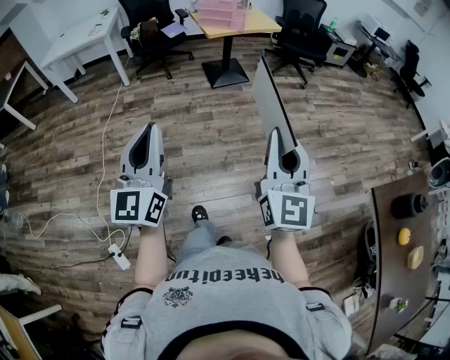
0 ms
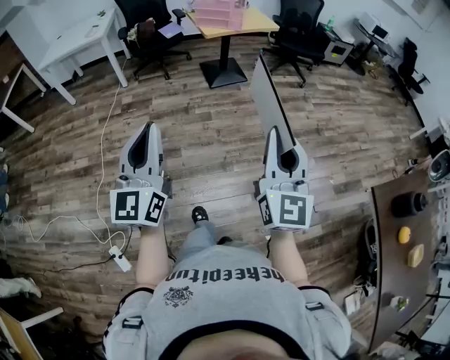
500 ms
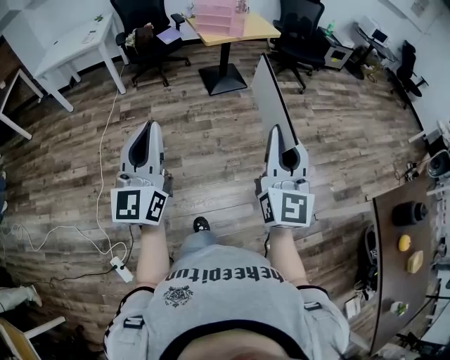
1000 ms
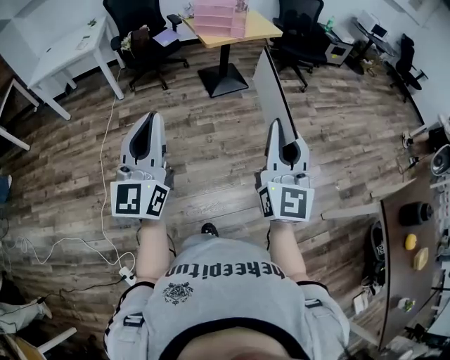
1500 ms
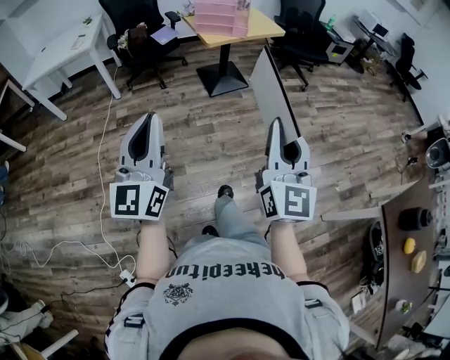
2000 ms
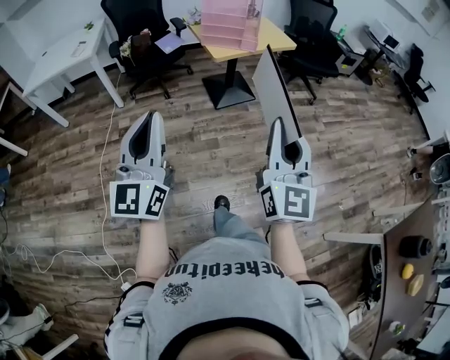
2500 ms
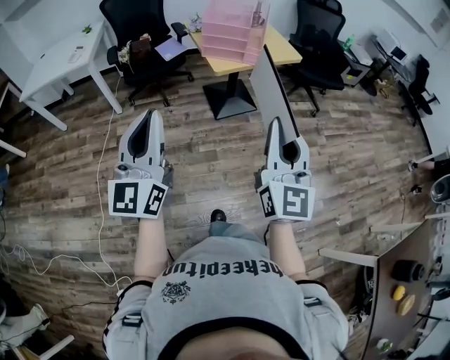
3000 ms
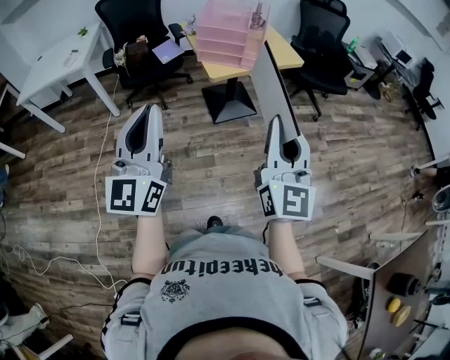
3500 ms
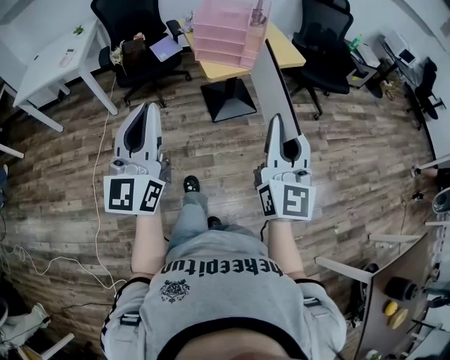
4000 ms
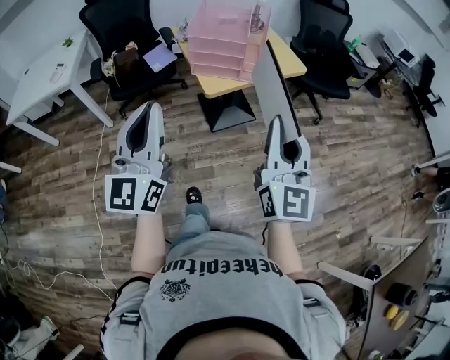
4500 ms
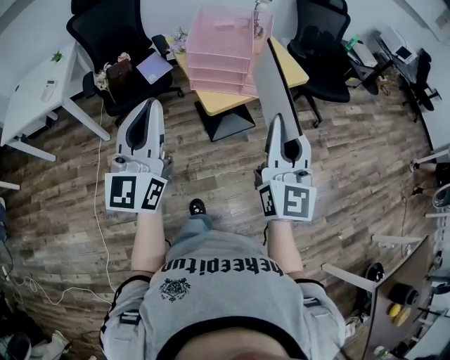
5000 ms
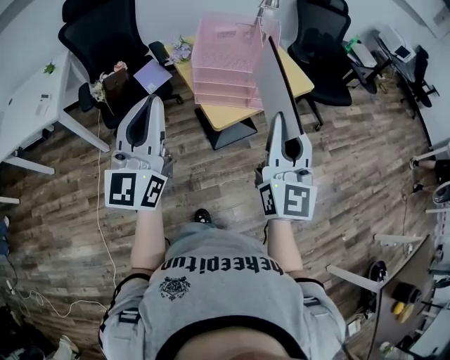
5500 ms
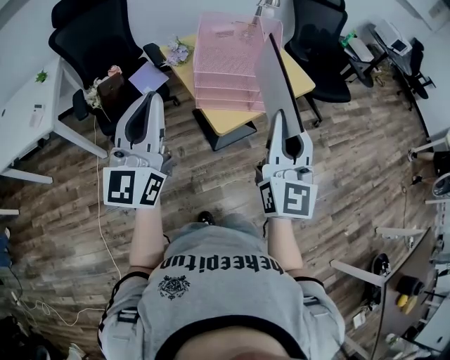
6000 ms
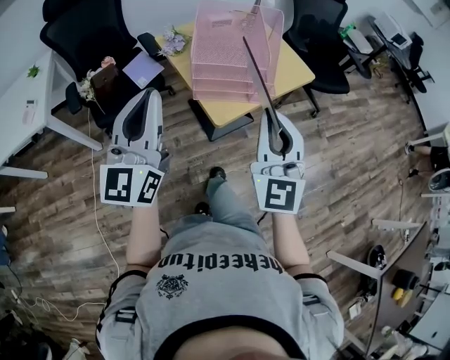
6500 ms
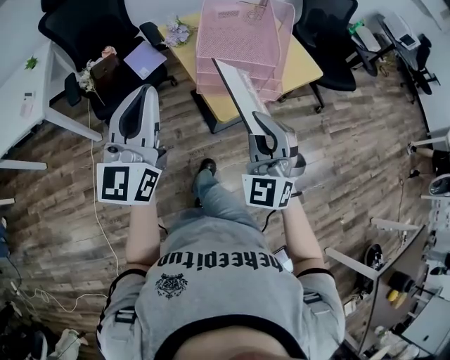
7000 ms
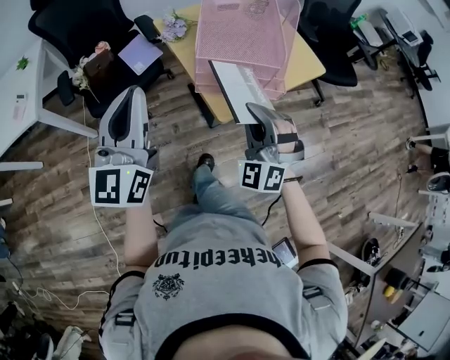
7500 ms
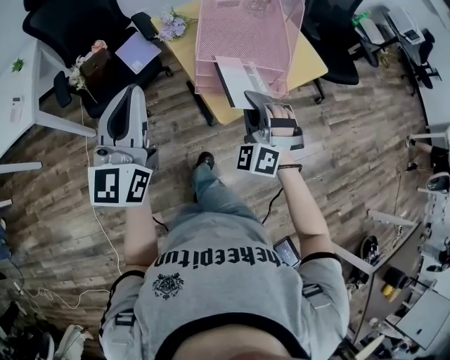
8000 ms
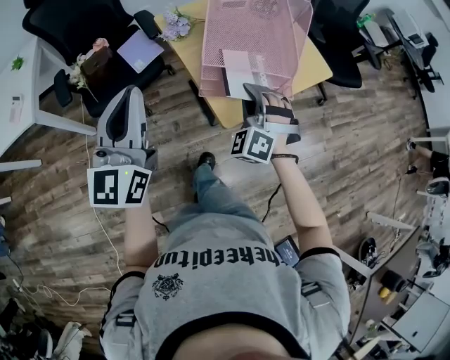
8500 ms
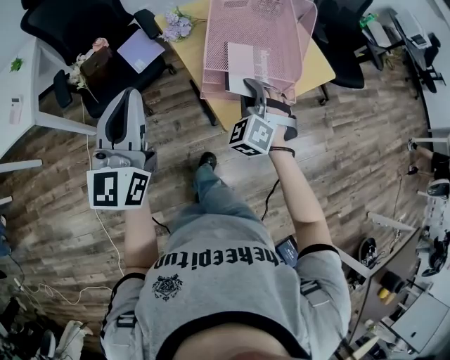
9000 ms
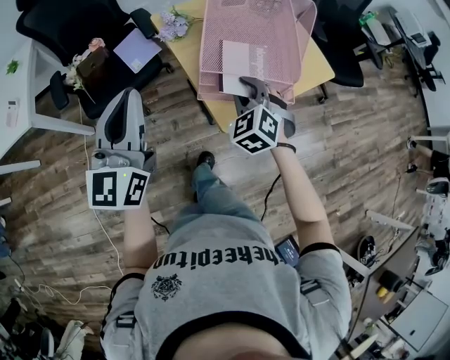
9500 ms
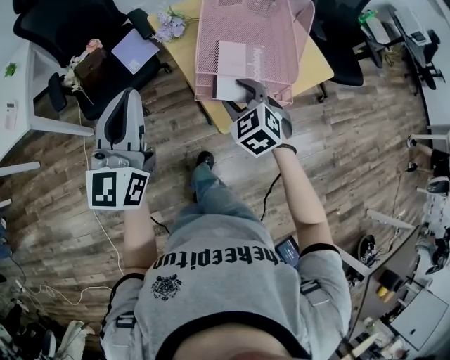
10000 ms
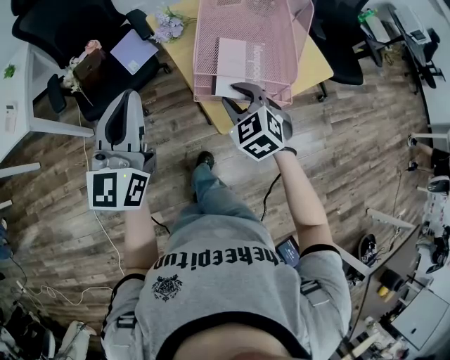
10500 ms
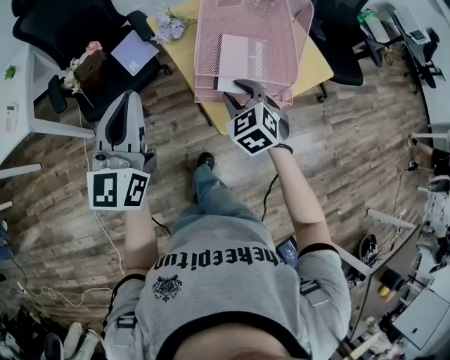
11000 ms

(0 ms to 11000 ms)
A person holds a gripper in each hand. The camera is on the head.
0 ms - 2000 ms: The two grippers go approximately 25 cm forward and to the left.
2000 ms - 3500 ms: Both grippers move forward, approximately 35 cm.
3500 ms - 5500 ms: The two grippers go about 35 cm forward.
5500 ms - 7500 ms: The right gripper goes about 25 cm downward, forward and to the left, and rolls counterclockwise, seen from behind, by roughly 60 degrees; the left gripper travels forward, to the left and downward by approximately 15 cm.
7500 ms - 9000 ms: The left gripper goes roughly 5 cm forward. Meanwhile the right gripper shifts roughly 15 cm forward and downward.
9000 ms - 11000 ms: The right gripper turns by about 30 degrees, and opens.

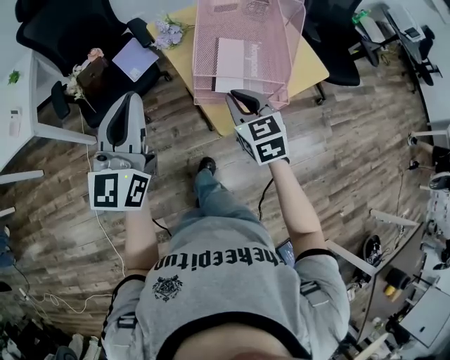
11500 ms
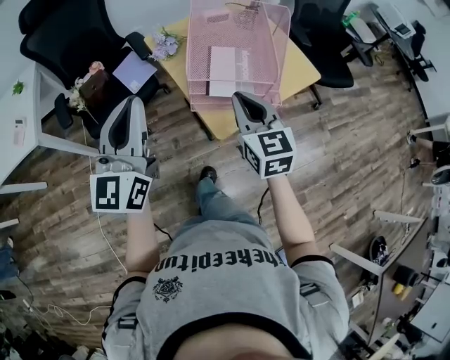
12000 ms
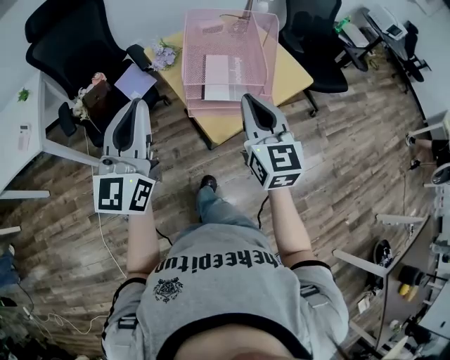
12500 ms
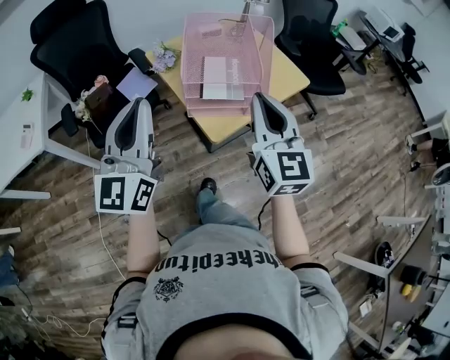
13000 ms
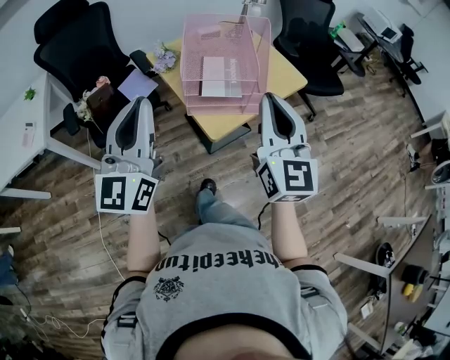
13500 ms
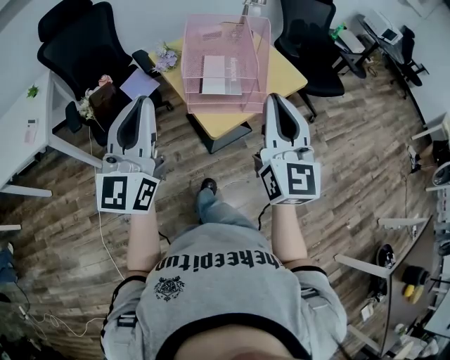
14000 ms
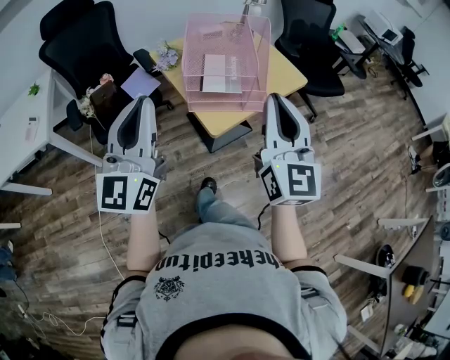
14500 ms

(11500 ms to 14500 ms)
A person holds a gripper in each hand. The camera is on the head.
11500 ms - 13000 ms: The left gripper travels backward and upward by about 10 cm, while the right gripper goes roughly 20 cm upward, backward and to the right, and angles its fingers upward, by some 30 degrees.
13000 ms - 14500 ms: The grippers both shift backward by approximately 5 cm.

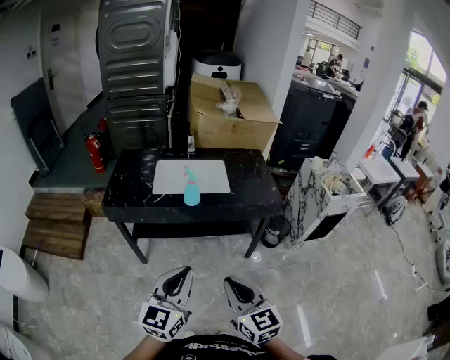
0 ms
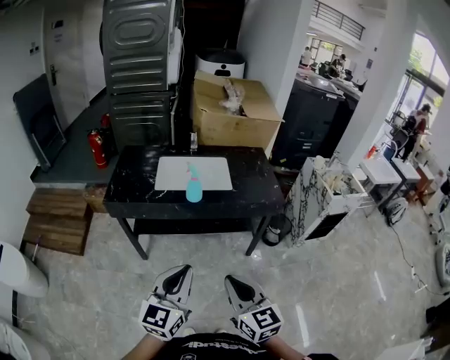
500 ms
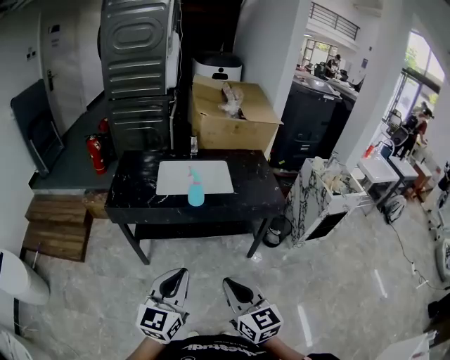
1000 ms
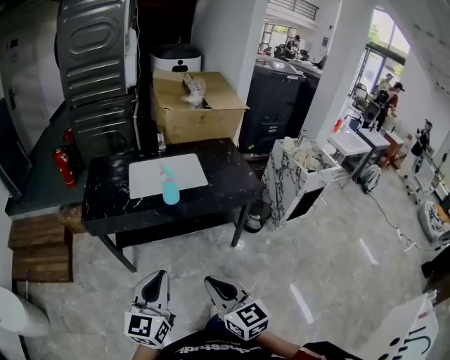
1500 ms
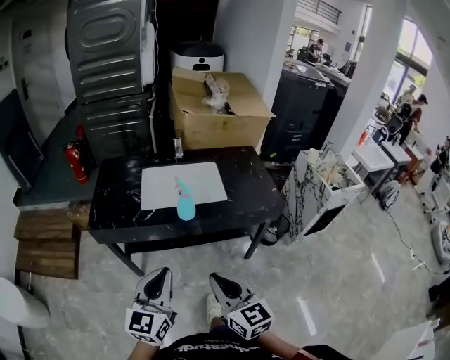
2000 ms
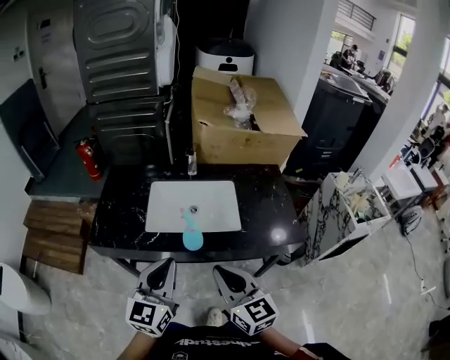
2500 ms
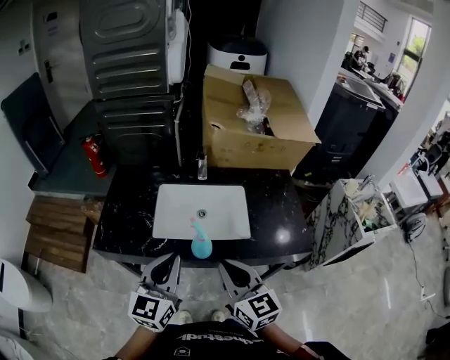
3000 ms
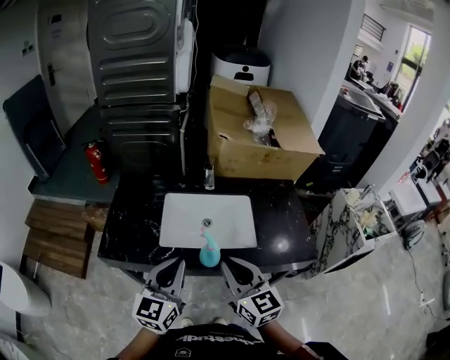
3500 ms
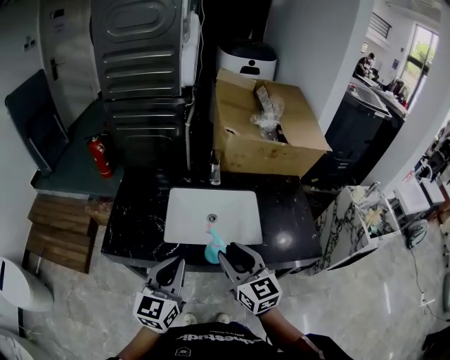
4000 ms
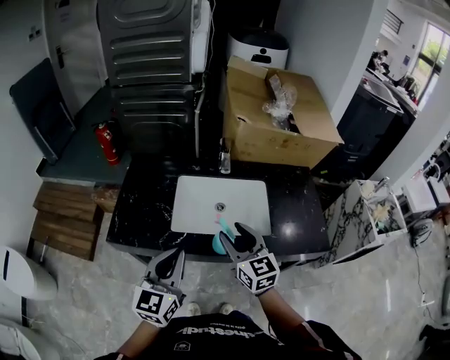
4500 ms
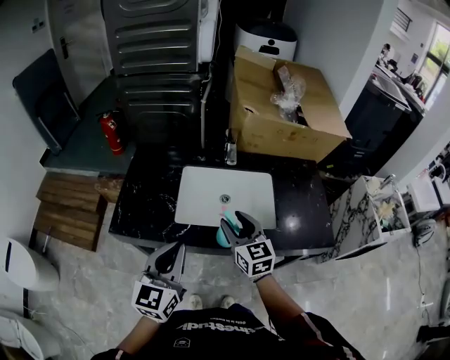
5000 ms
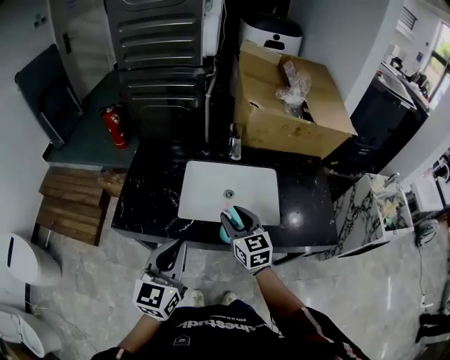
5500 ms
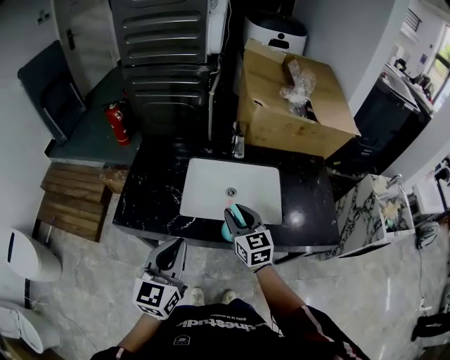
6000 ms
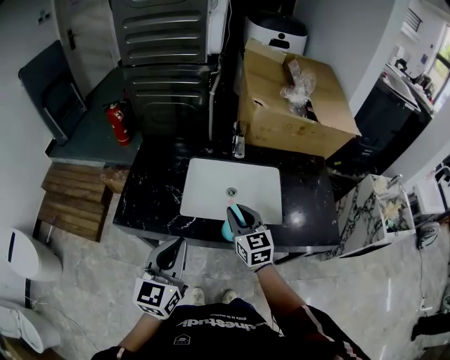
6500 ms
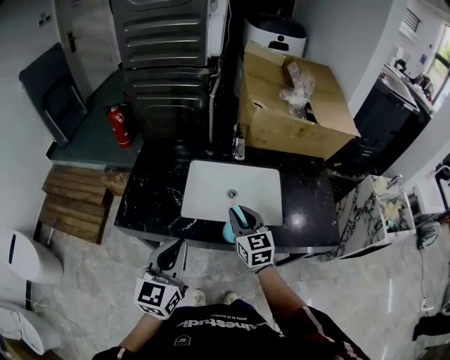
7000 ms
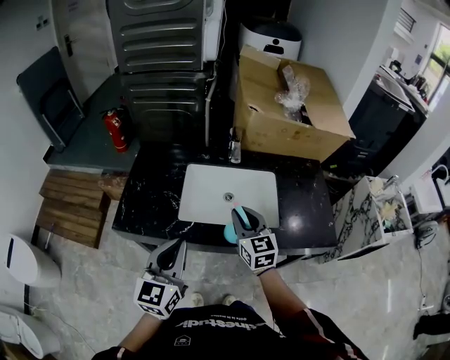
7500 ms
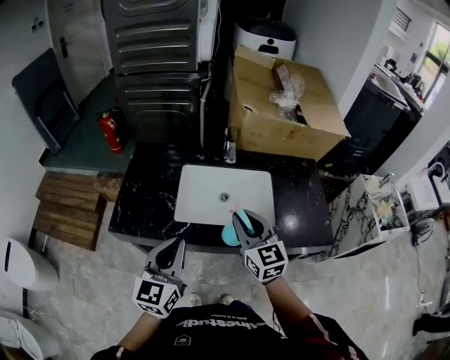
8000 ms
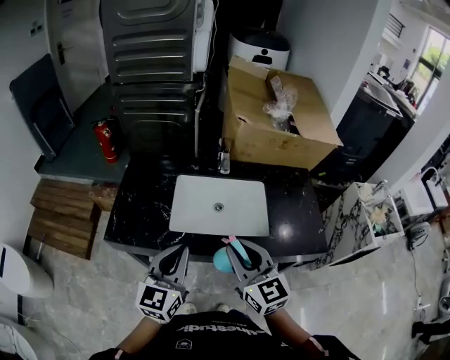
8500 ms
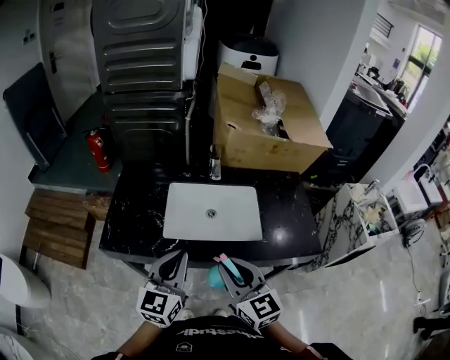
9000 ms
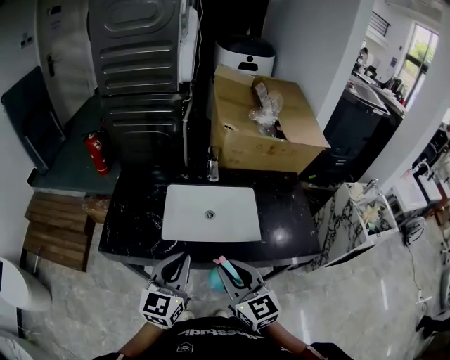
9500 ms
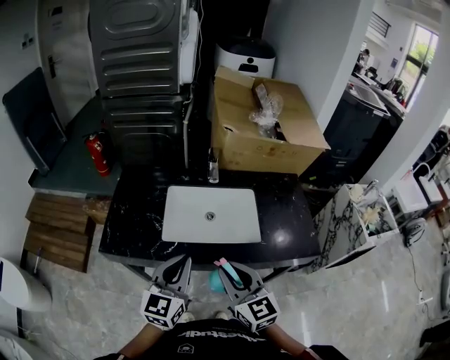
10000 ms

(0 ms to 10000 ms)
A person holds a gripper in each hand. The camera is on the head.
0 ms - 2000 ms: Both grippers move forward and to the left, approximately 15 cm.
2000 ms - 4000 ms: Both grippers move forward, roughly 30 cm. The right gripper opens its fingers.
4000 ms - 6000 ms: The right gripper goes about 15 cm forward and downward.
6000 ms - 8000 ms: The right gripper travels upward by some 10 cm.
8000 ms - 10000 ms: The right gripper is displaced backward by approximately 10 cm; the left gripper travels to the right by approximately 5 cm.

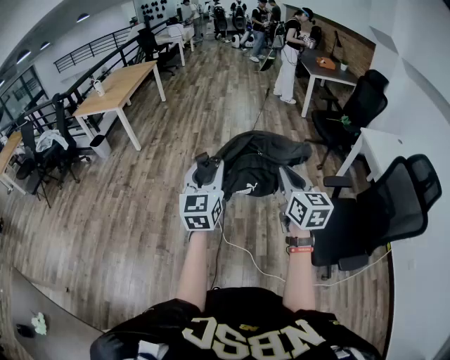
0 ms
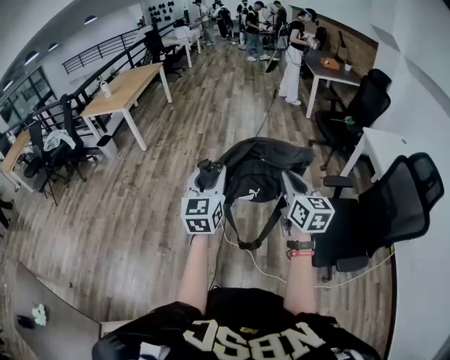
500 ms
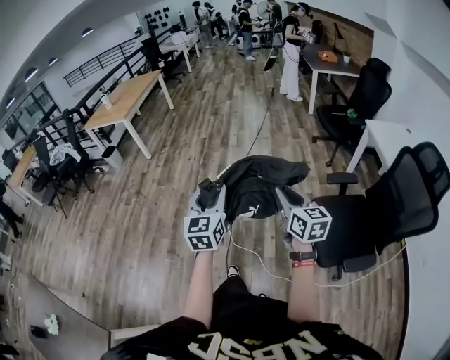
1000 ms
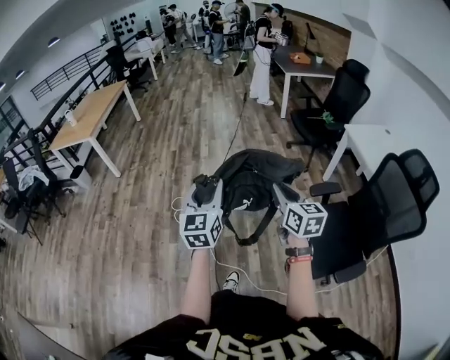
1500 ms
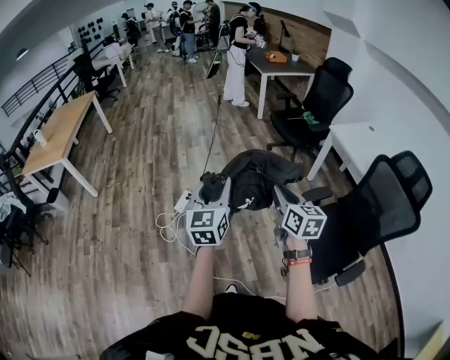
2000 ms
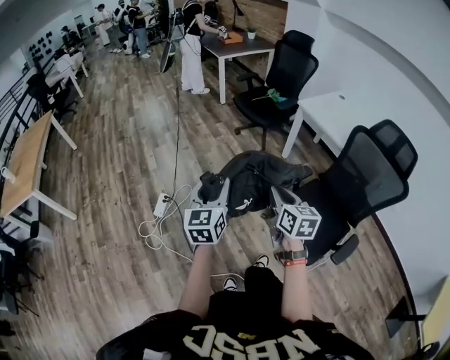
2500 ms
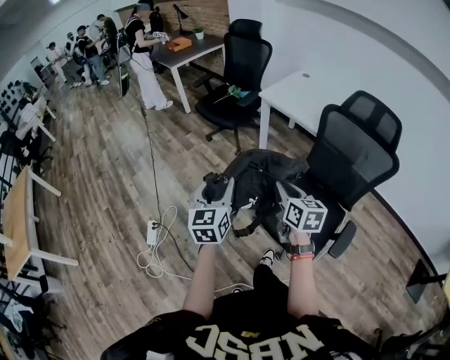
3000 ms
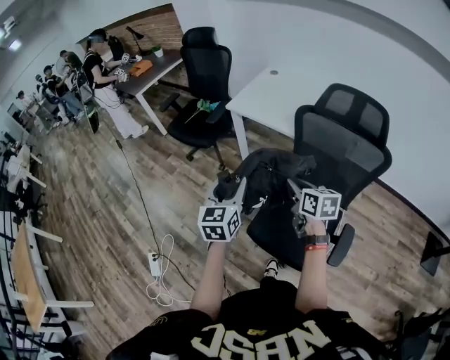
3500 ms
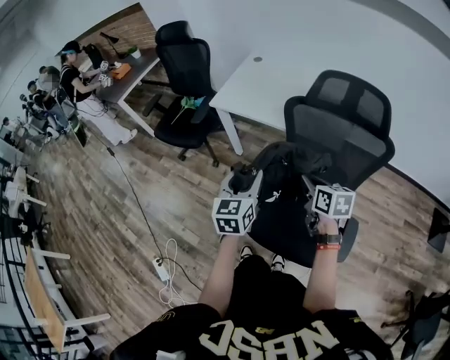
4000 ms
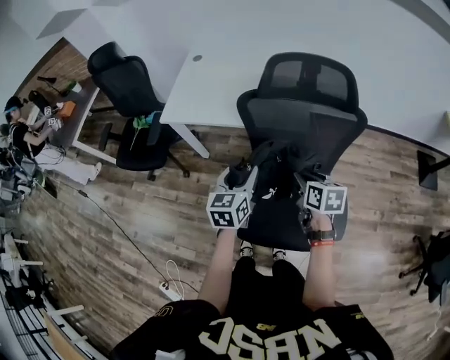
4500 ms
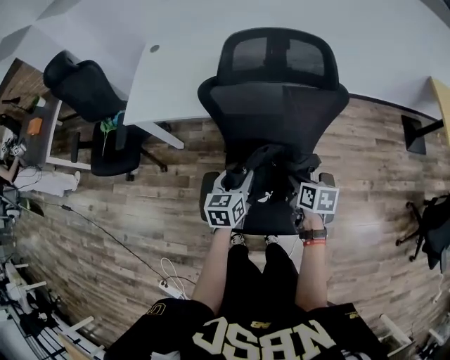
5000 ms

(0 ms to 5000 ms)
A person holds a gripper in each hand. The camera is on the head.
0 ms - 2500 ms: The right gripper moves about 30 cm, and changes its angle by approximately 40 degrees; the left gripper ends up roughly 35 cm from where it was, and swivels approximately 40 degrees.
2500 ms - 5000 ms: The pair of grippers is taken about 60 cm. The left gripper swivels some 70 degrees; the right gripper swivels about 60 degrees.
